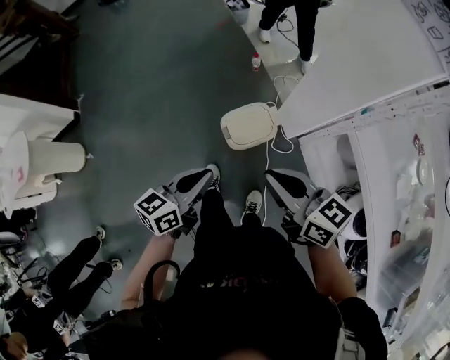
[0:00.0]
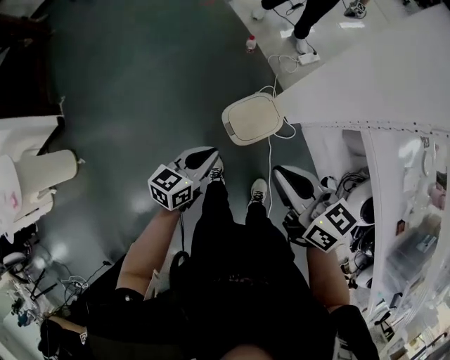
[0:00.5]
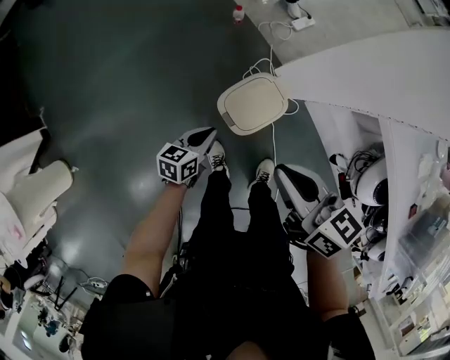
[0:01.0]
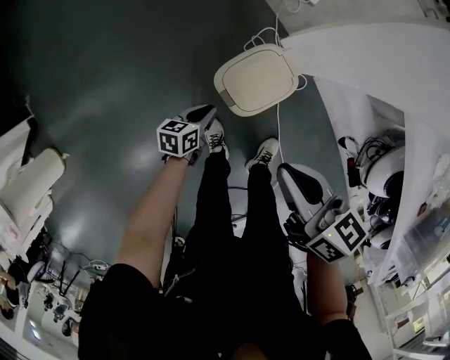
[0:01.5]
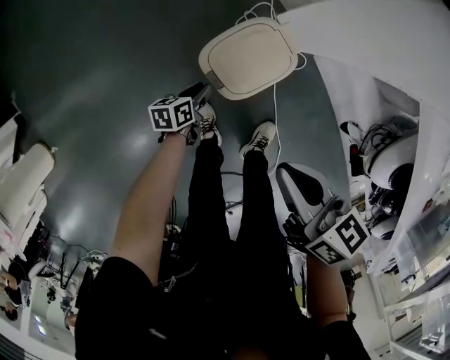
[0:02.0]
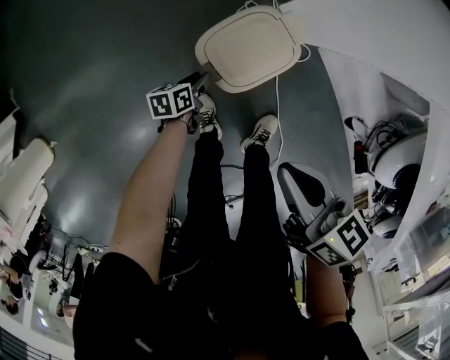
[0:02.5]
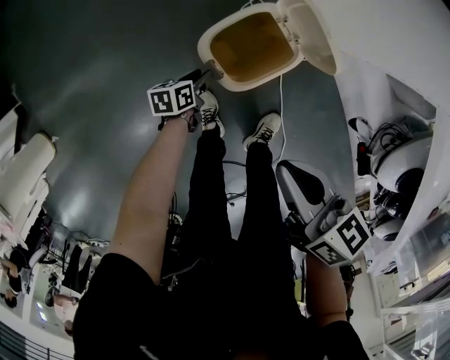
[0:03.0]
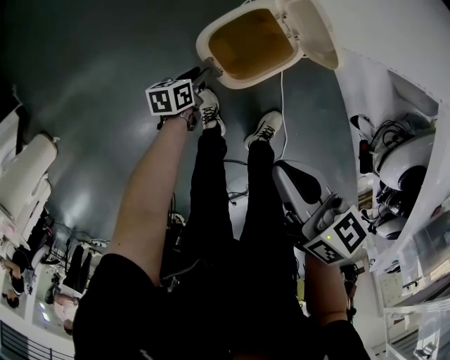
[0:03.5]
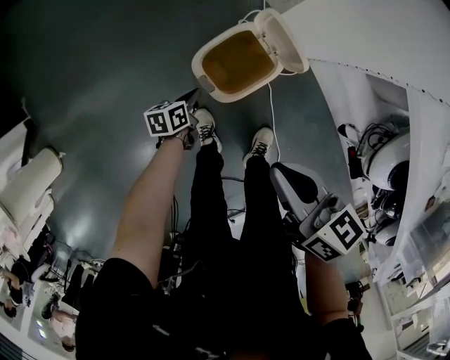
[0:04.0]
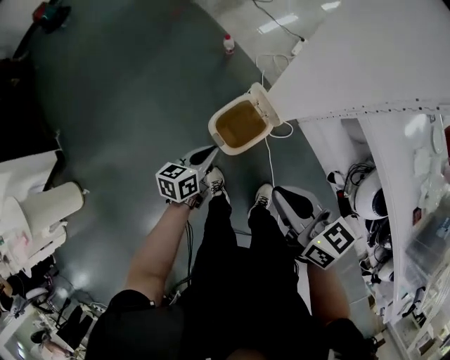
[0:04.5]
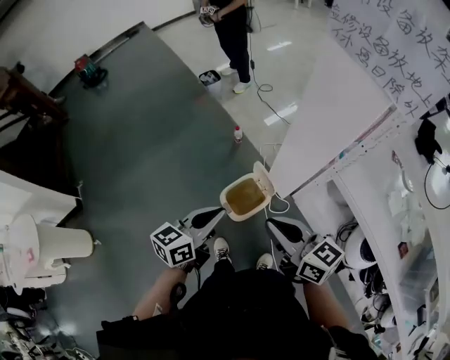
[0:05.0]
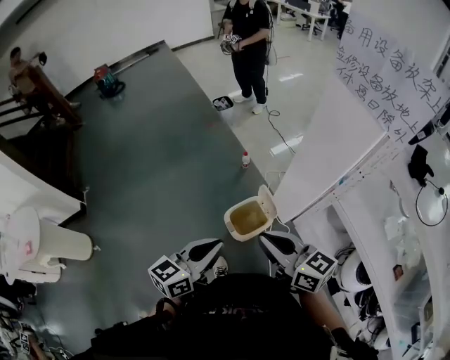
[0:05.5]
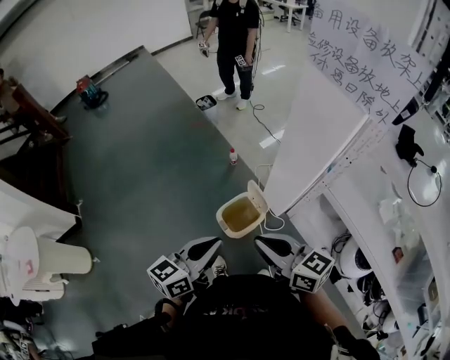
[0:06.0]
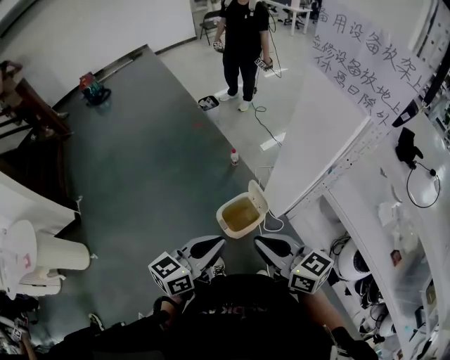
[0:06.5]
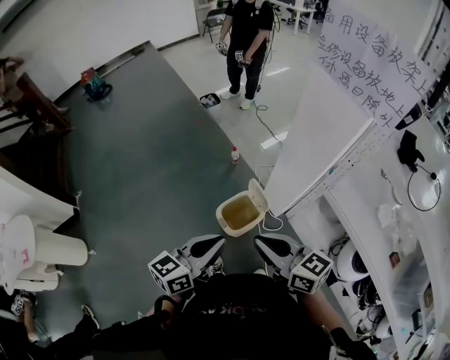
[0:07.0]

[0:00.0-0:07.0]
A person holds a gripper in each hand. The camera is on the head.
0:00.0 to 0:02.0: The left gripper travels downward by about 50 cm, changes its angle by about 40 degrees, and opens its fingers, while the right gripper shifts some 25 cm downward, and changes its angle by roughly 30 degrees.
0:02.0 to 0:03.5: There are only small adjustments of the grippers.
0:03.5 to 0:05.0: The right gripper shifts roughly 30 cm upward, and turns by about 30 degrees, while the left gripper is displaced upward by some 60 cm, points its fingers approximately 40 degrees further upward, and closes.
0:05.0 to 0:07.0: The right gripper ends up about 5 cm from where it was, while the left gripper is displaced backward and upward by about 10 cm.

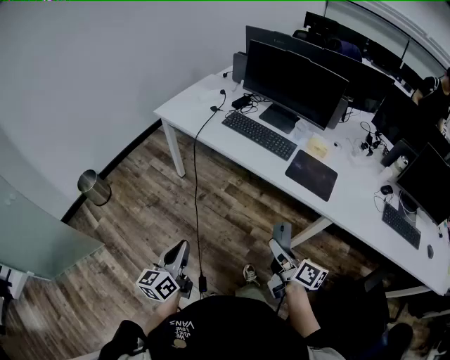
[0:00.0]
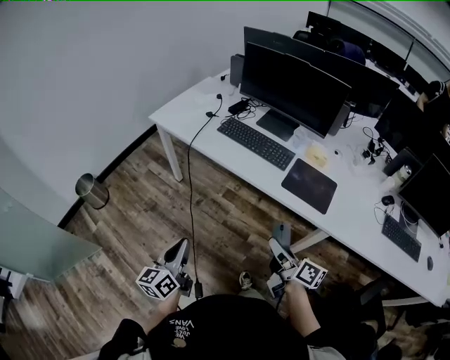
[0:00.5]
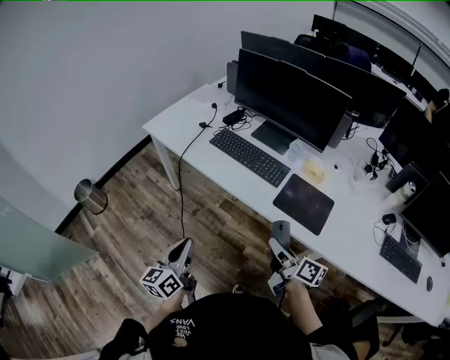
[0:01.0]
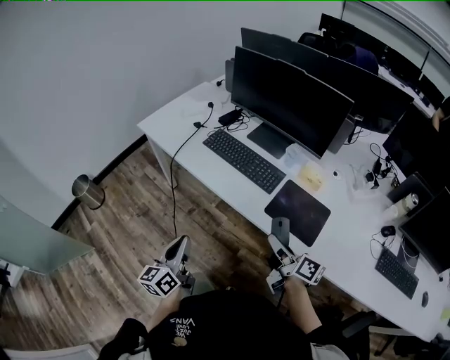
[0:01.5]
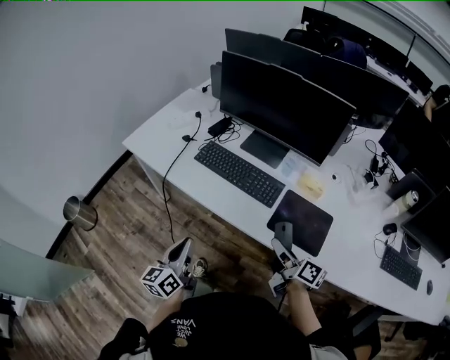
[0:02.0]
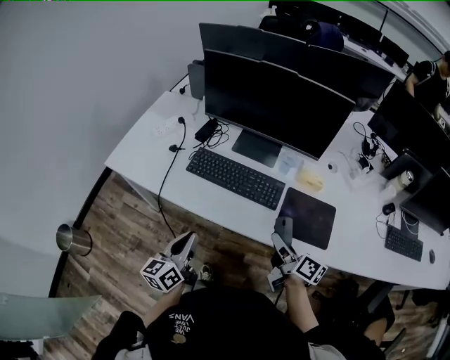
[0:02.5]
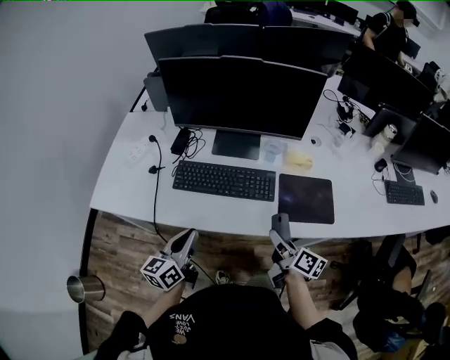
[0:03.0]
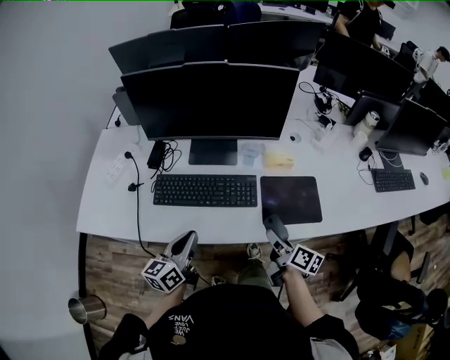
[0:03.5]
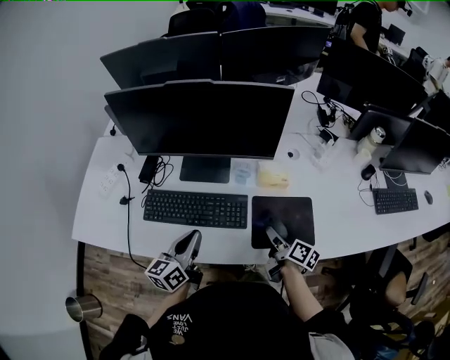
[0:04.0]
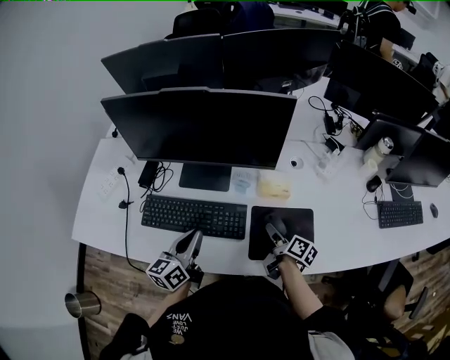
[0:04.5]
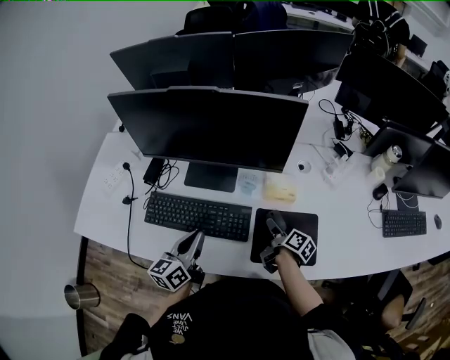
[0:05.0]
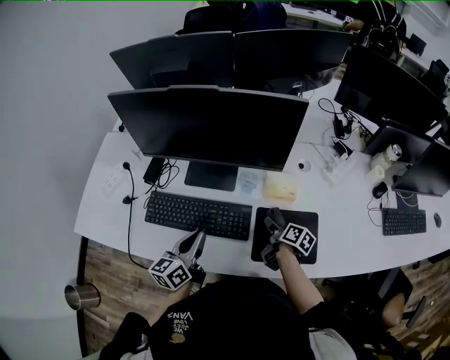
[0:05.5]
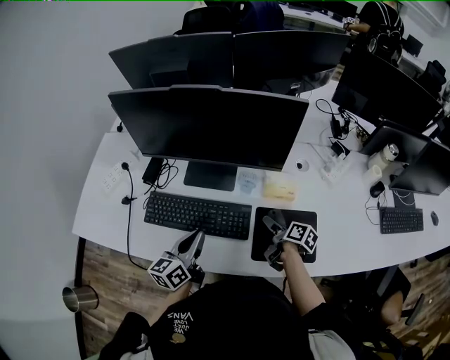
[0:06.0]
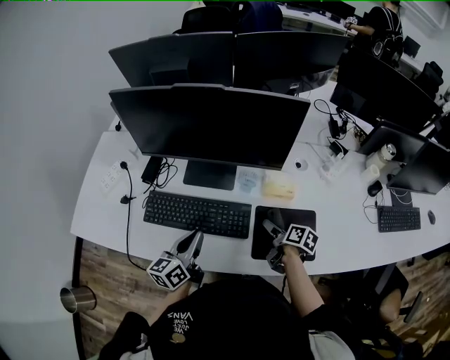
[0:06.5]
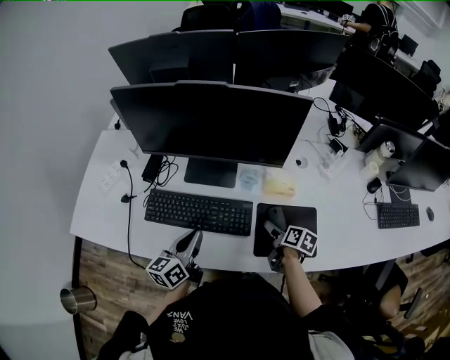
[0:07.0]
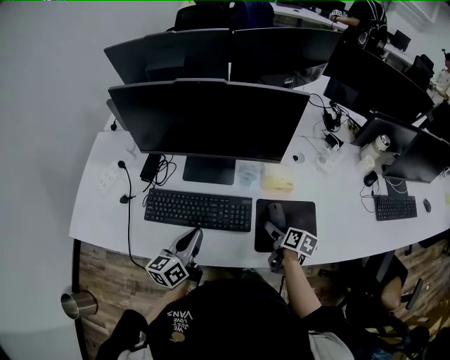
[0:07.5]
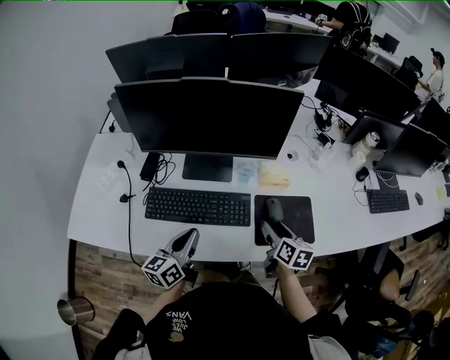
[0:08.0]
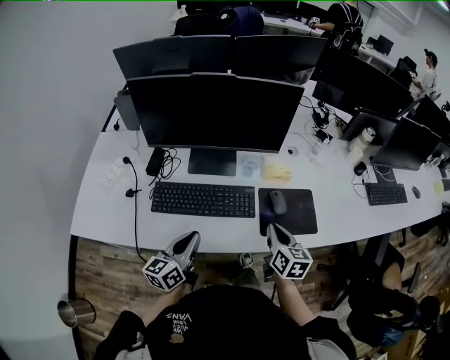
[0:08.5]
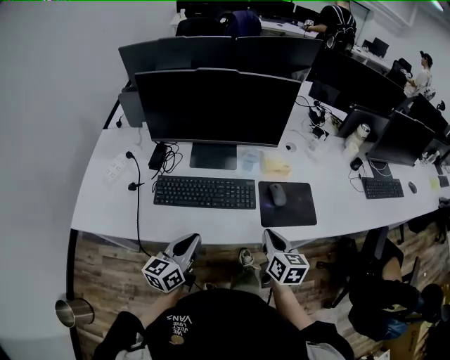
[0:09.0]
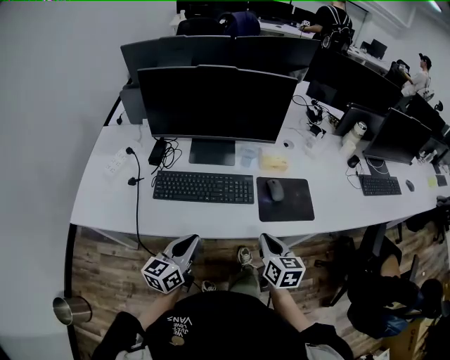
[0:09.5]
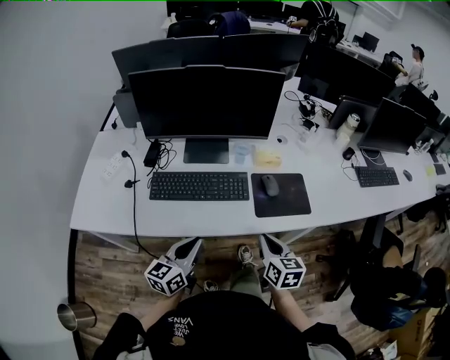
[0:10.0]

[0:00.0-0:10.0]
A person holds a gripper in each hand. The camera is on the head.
0:00.0 to 0:02.0: Both grippers travel together forward and to the right, about 30 cm.
0:02.0 to 0:04.0: The left gripper ends up about 25 cm from where it was, and rotates some 40 degrees. Meanwhile the right gripper moves roughly 15 cm, and changes its angle by approximately 30 degrees.
0:04.0 to 0:06.0: The right gripper is displaced forward by about 10 cm, and opens up.
0:06.0 to 0:08.0: The right gripper goes roughly 10 cm upward and backward, and changes its angle by approximately 40 degrees; the left gripper shifts by about 5 cm.
0:08.0 to 0:10.0: The two grippers go roughly 15 cm backward. The right gripper closes.

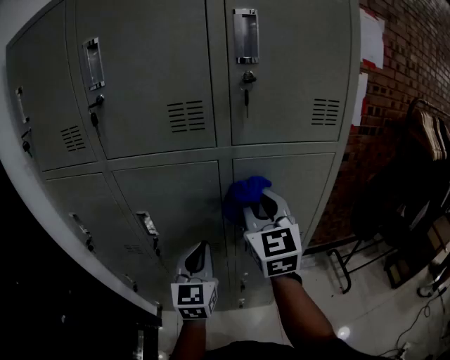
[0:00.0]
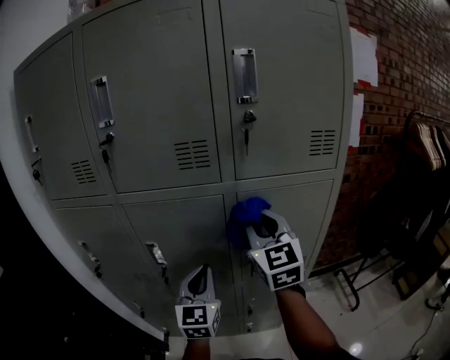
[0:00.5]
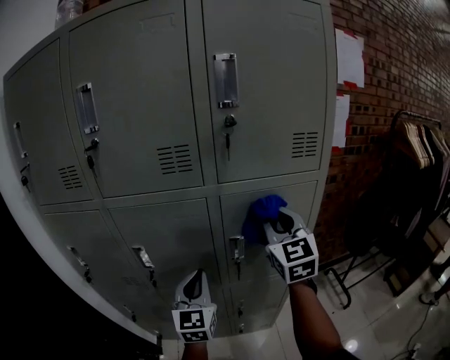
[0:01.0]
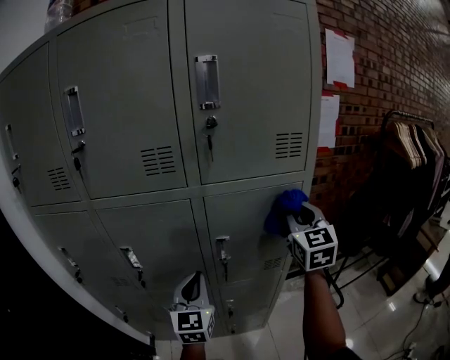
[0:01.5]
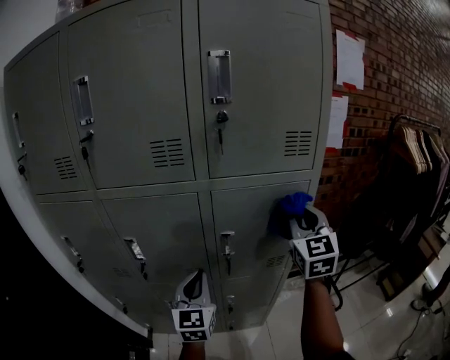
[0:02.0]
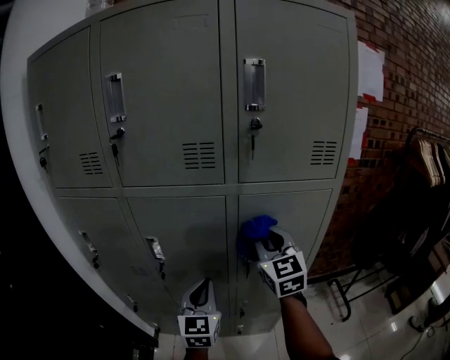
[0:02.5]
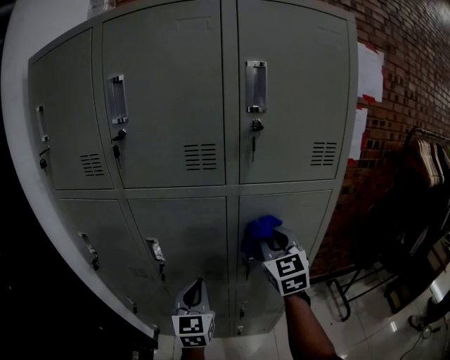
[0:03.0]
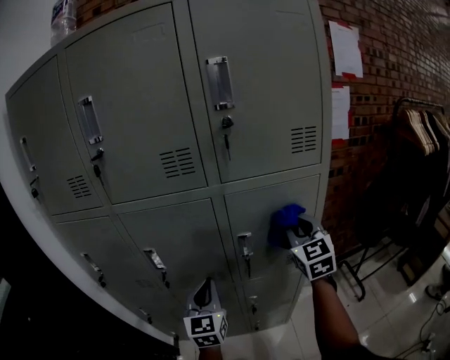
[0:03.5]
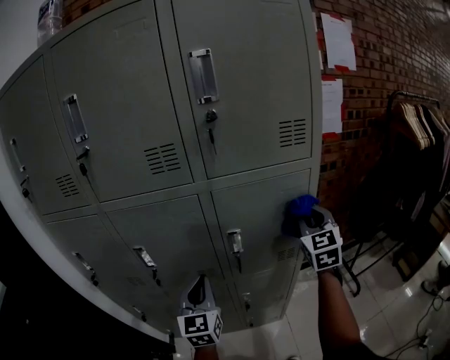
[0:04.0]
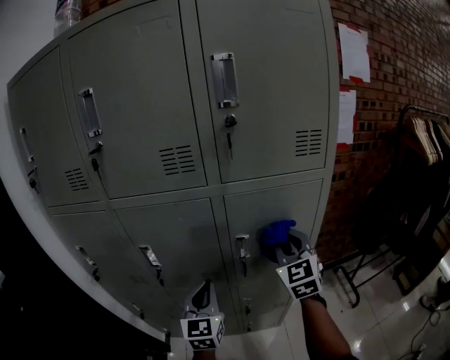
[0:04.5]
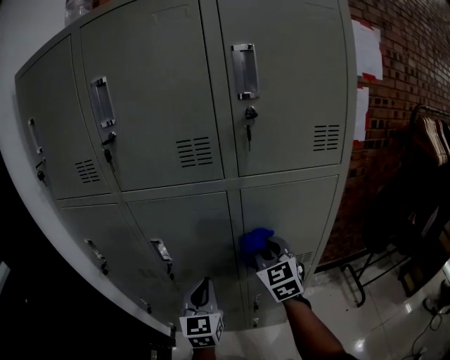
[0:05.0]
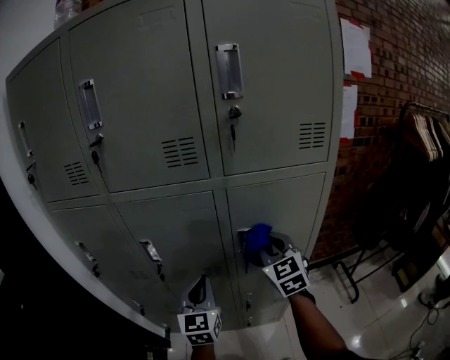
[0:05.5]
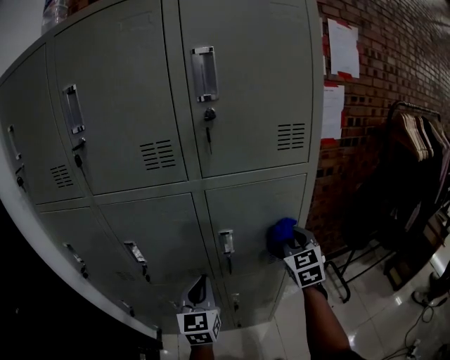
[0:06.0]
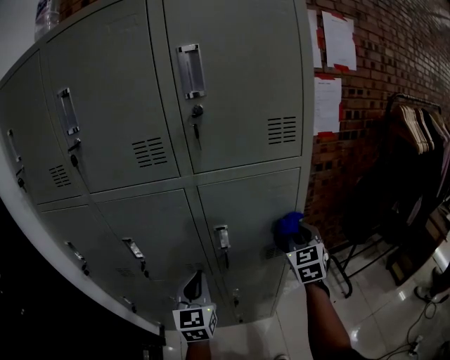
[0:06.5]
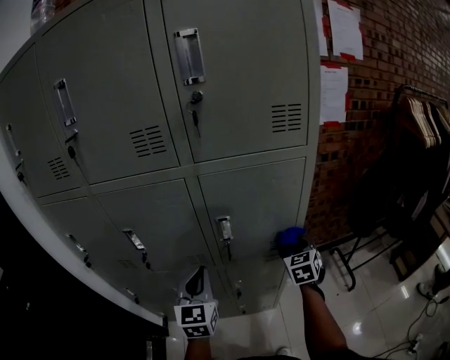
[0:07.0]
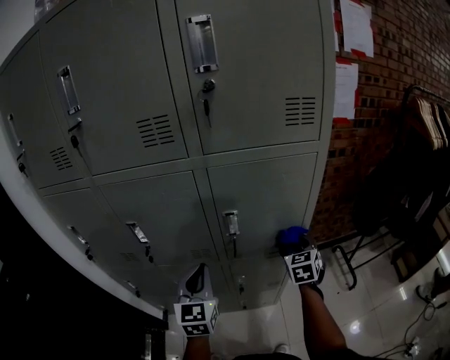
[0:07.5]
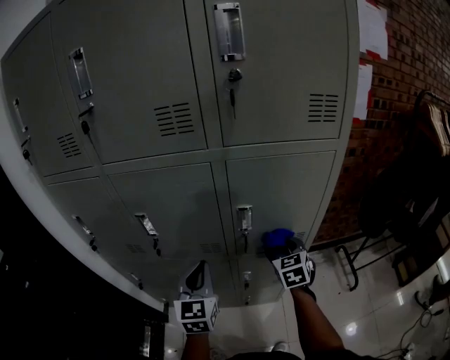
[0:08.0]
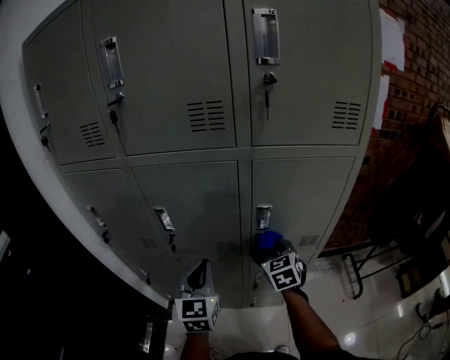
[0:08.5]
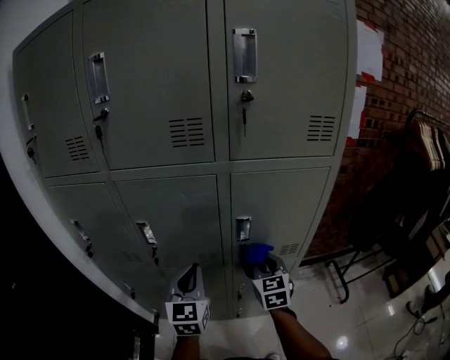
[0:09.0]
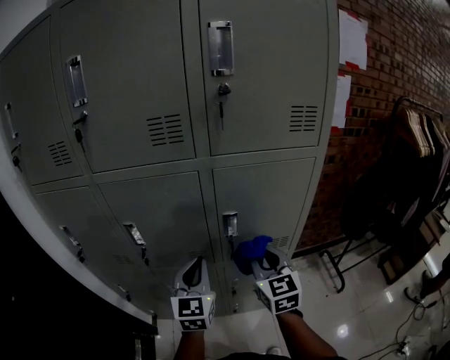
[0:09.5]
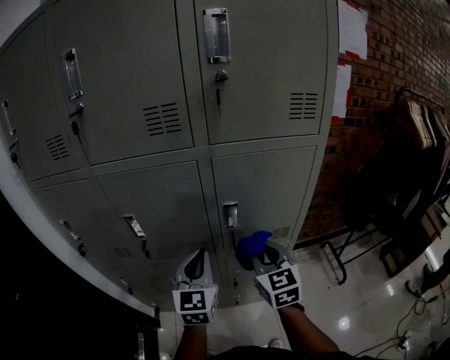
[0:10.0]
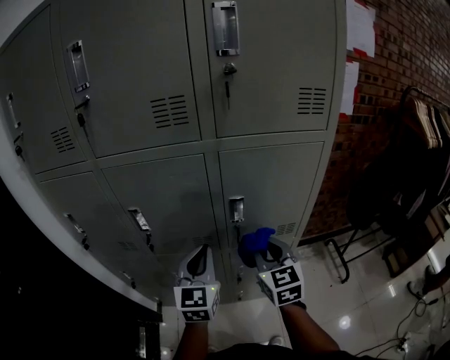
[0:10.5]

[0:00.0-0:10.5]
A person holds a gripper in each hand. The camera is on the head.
0:00.0 to 0:02.0: The right gripper is displaced to the right by roughly 20 cm.
0:02.0 to 0:04.0: The right gripper goes some 5 cm downward, and reaches approximately 15 cm to the left, then returns.
0:04.0 to 0:06.5: The right gripper travels downward by about 5 cm, and travels to the left and back again, some 20 cm each way.
0:06.5 to 0:08.5: The right gripper is displaced to the left and downward by about 25 cm, and changes its angle by approximately 20 degrees, while the left gripper travels to the left by about 10 cm.
0:08.5 to 0:10.5: The left gripper moves to the right, roughly 5 cm, while the right gripper travels backward and upward by roughly 10 cm.
